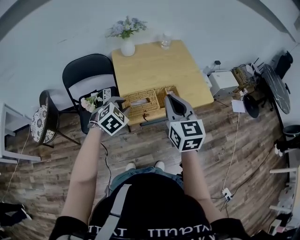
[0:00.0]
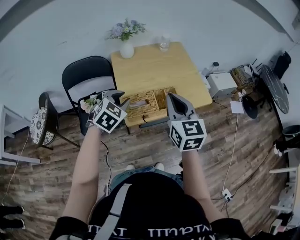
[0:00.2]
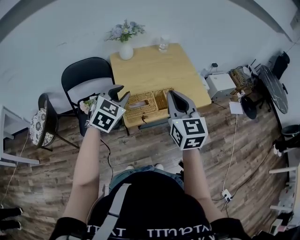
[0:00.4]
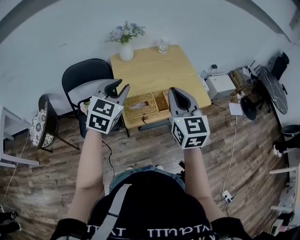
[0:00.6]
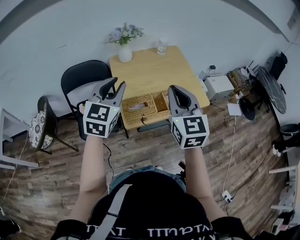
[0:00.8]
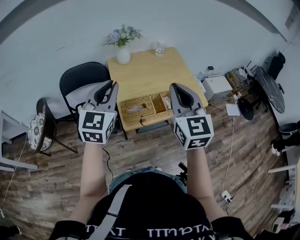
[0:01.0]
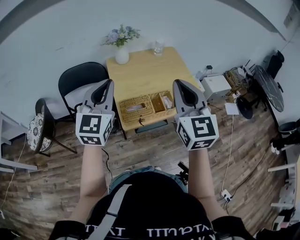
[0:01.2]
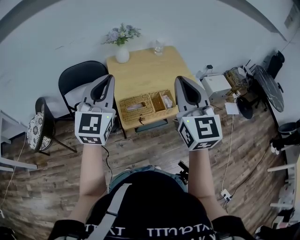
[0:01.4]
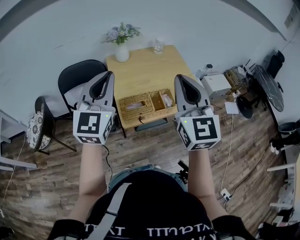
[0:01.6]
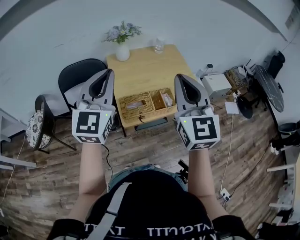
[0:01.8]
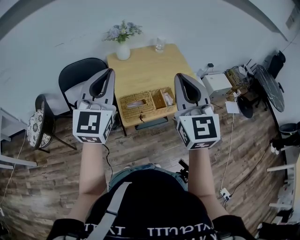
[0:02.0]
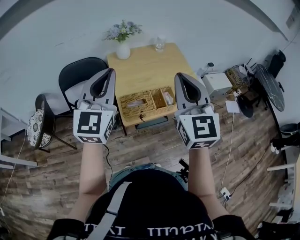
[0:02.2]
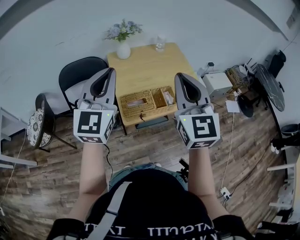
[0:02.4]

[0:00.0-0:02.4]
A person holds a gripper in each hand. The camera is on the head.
0:00.0 to 0:01.2: The right gripper moves upward, roughly 10 cm. Meanwhile the left gripper moves upward, roughly 25 cm, tips its fingers upward by about 50 degrees, and closes up.
0:01.2 to 0:02.4: The grippers move only a little.

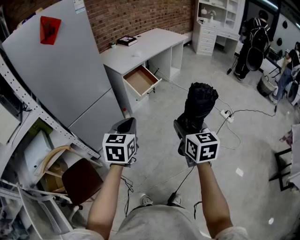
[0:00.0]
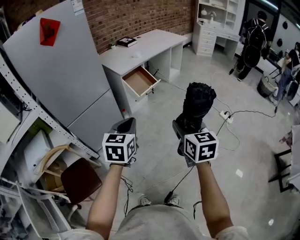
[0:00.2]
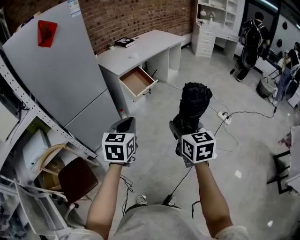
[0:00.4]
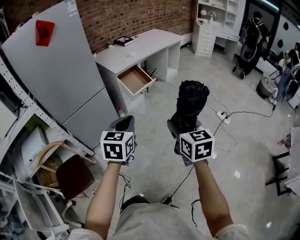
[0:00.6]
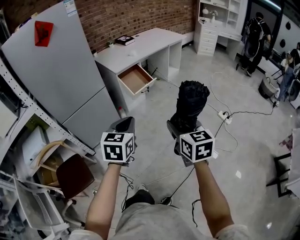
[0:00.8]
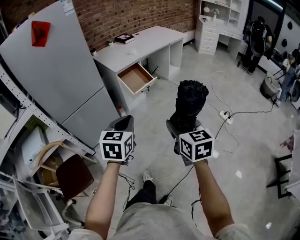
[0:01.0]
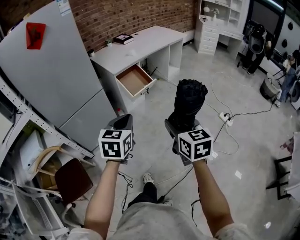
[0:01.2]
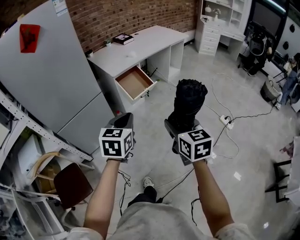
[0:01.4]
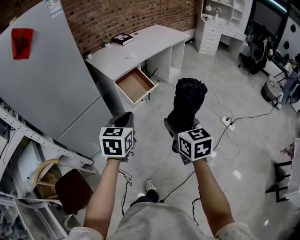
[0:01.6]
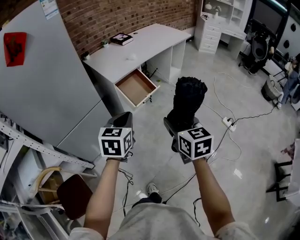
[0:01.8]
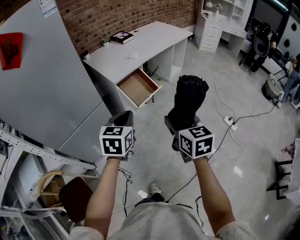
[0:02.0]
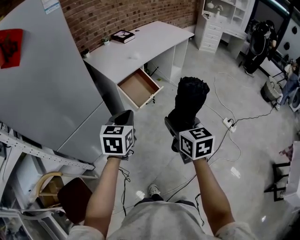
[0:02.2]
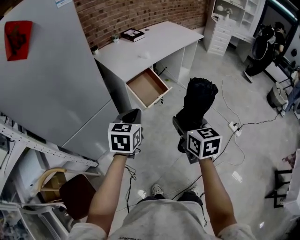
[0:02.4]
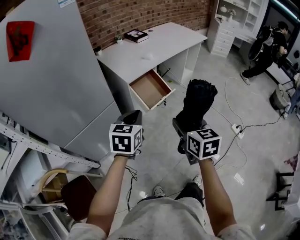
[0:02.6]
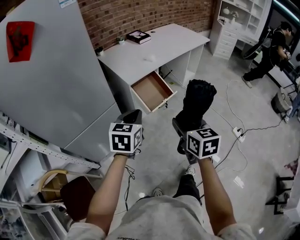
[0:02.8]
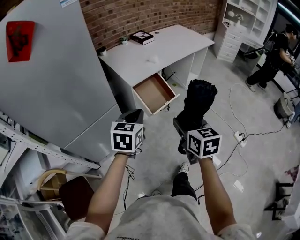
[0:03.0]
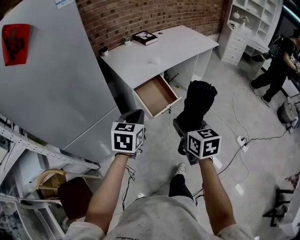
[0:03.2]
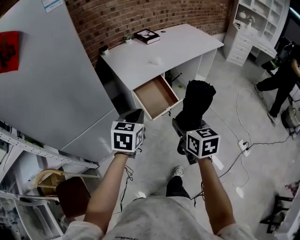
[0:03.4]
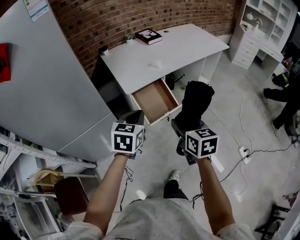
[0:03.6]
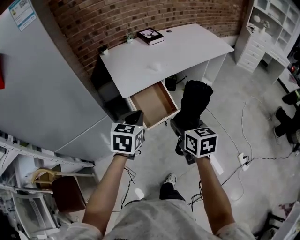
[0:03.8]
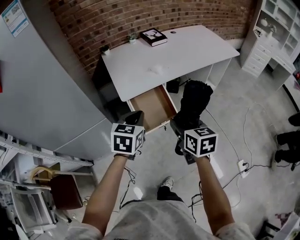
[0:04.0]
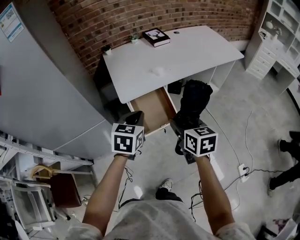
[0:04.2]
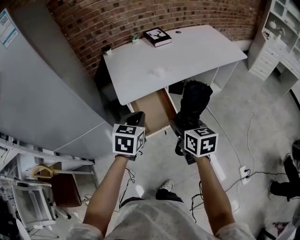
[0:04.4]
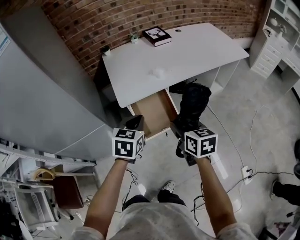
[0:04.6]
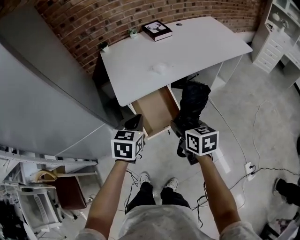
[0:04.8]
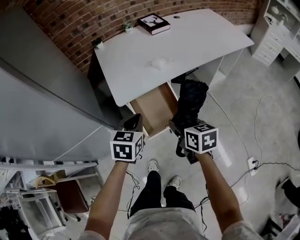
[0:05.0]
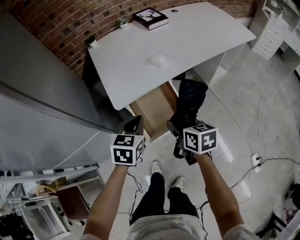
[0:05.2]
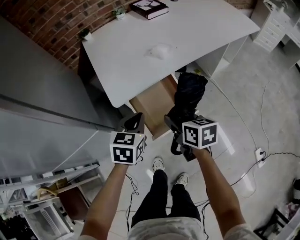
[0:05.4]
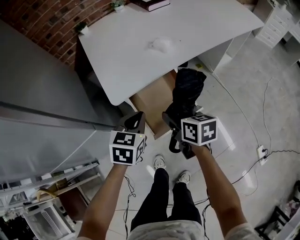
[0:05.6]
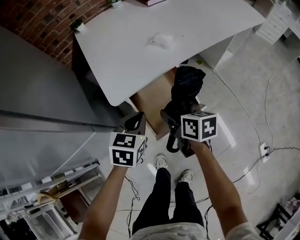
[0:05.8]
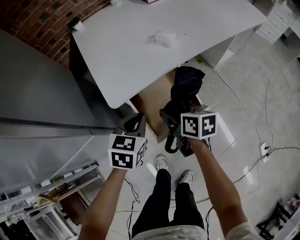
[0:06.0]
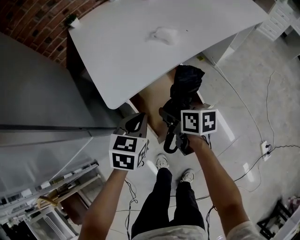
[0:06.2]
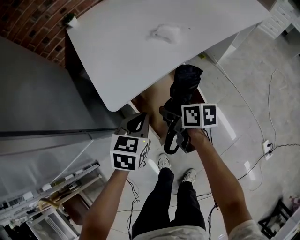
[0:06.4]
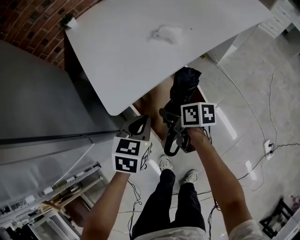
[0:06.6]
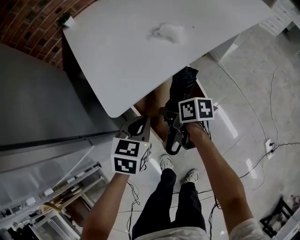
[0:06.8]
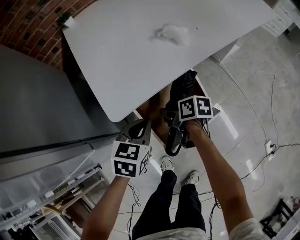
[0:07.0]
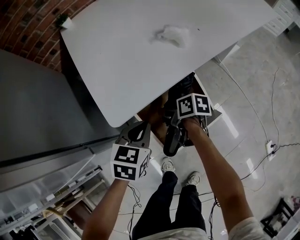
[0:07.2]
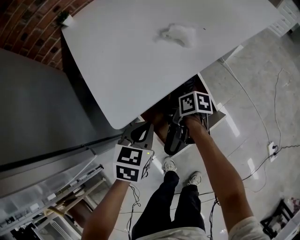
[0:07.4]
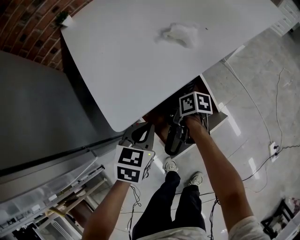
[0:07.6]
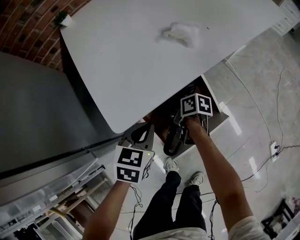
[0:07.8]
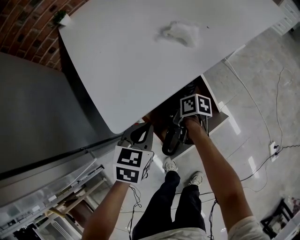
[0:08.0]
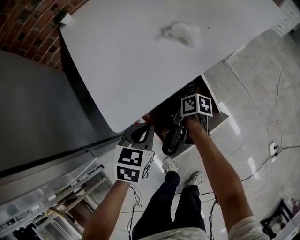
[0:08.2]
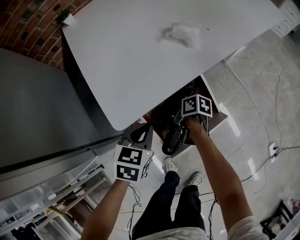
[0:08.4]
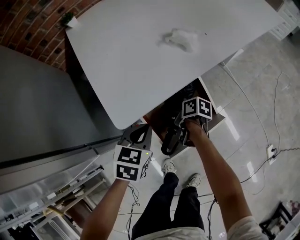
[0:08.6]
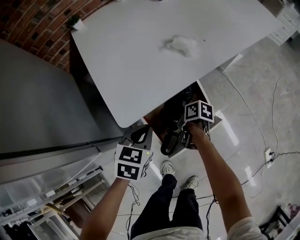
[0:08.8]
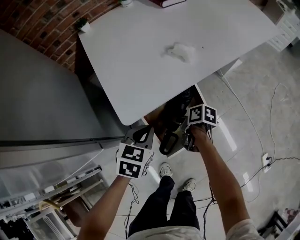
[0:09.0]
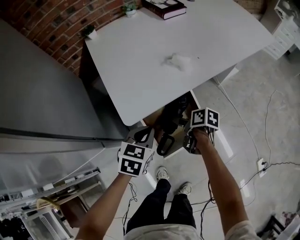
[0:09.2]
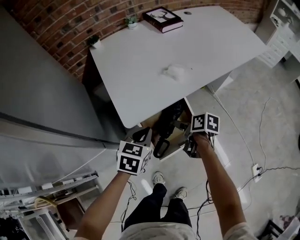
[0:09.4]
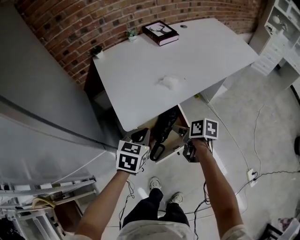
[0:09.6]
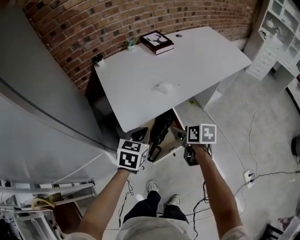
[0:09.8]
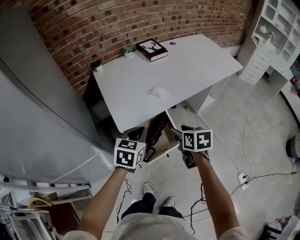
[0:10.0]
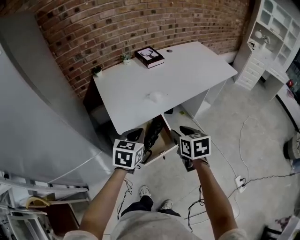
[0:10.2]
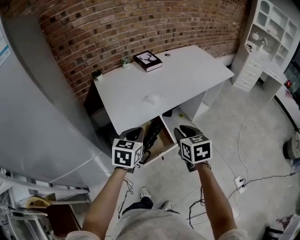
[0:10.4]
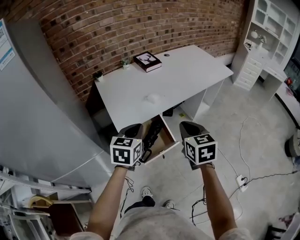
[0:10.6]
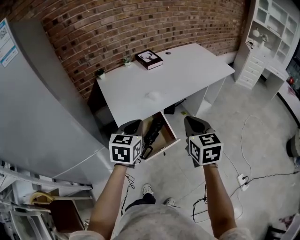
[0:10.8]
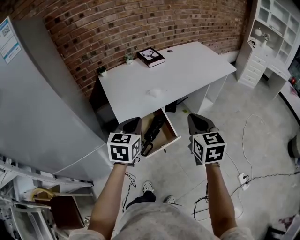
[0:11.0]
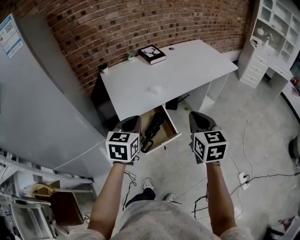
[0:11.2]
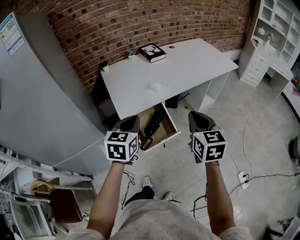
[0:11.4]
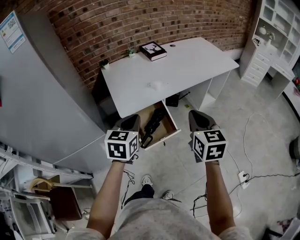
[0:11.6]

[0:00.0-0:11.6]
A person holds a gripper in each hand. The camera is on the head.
0:00.0 to 0:01.4: The left gripper travels forward and to the right by some 15 cm; the right gripper shifts about 10 cm forward.
0:01.4 to 0:02.8: The two grippers go approximately 20 cm forward and to the left.
0:02.8 to 0:04.4: The grippers both shift forward and to the right by some 30 cm. The right gripper rotates roughly 20 degrees.
0:04.4 to 0:05.8: The right gripper travels downward, forward and to the left by roughly 30 cm, and turns by approximately 20 degrees, while the left gripper travels downward and forward by some 25 cm.
0:05.8 to 0:07.2: The right gripper is displaced downward and forward by about 15 cm, and turns by roughly 30 degrees; the left gripper is displaced downward by some 5 cm.
0:07.2 to 0:08.8: The grippers make only small movements.
0:08.8 to 0:10.2: The right gripper is displaced upward by some 40 cm, rolls counterclockwise, seen from behind, by about 50 degrees, and closes. Meanwhile the left gripper travels upward by roughly 25 cm.
0:10.2 to 0:11.6: The right gripper goes roughly 15 cm upward, backward and to the right, swivels some 20 degrees, and closes up. The left gripper goes roughly 10 cm backward and upward.

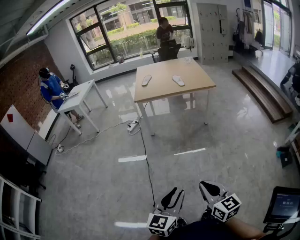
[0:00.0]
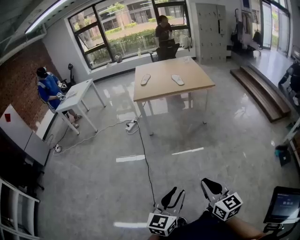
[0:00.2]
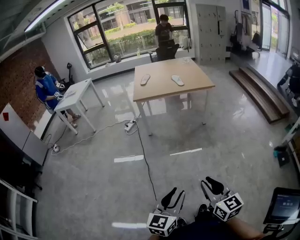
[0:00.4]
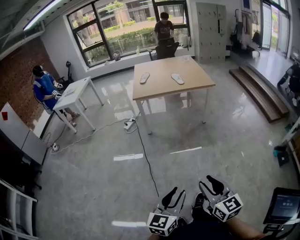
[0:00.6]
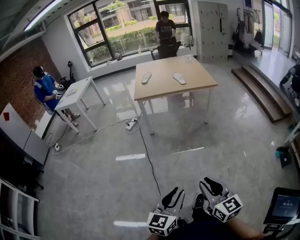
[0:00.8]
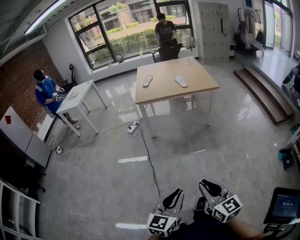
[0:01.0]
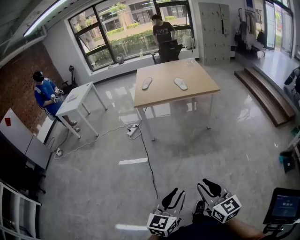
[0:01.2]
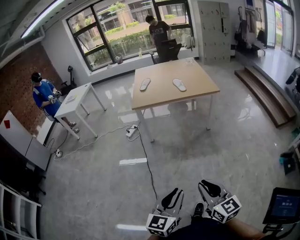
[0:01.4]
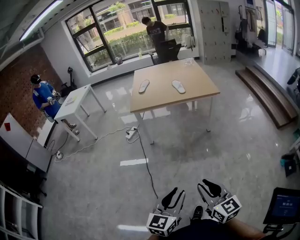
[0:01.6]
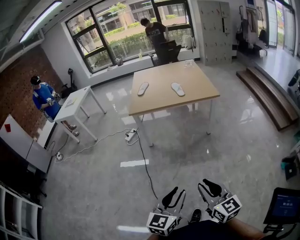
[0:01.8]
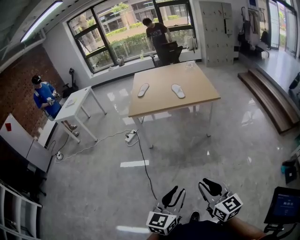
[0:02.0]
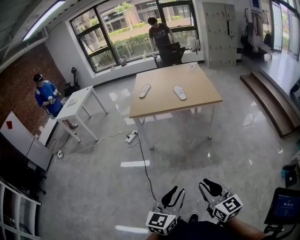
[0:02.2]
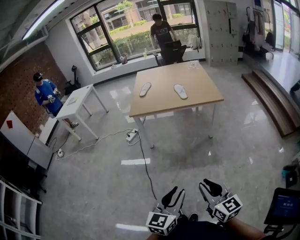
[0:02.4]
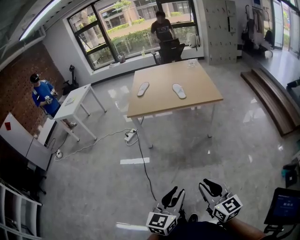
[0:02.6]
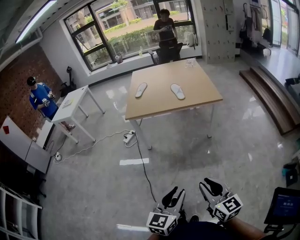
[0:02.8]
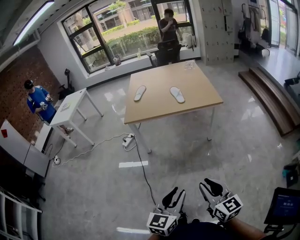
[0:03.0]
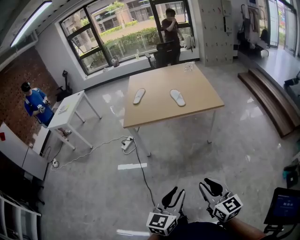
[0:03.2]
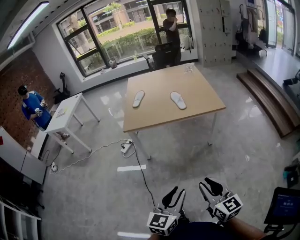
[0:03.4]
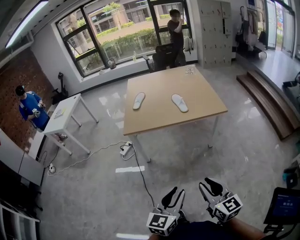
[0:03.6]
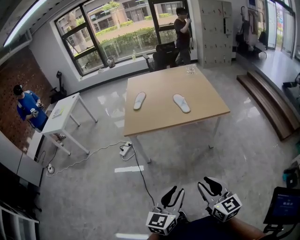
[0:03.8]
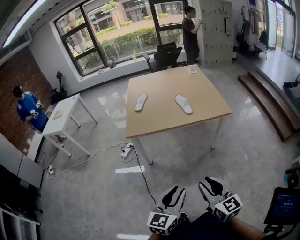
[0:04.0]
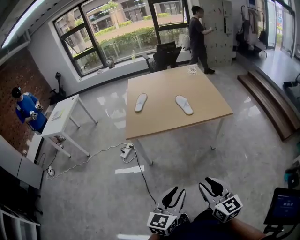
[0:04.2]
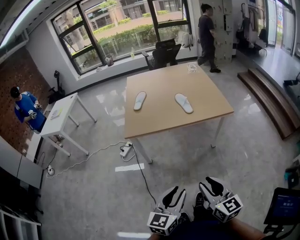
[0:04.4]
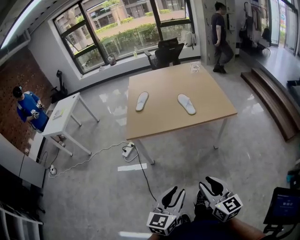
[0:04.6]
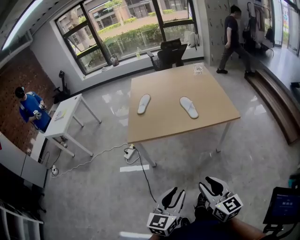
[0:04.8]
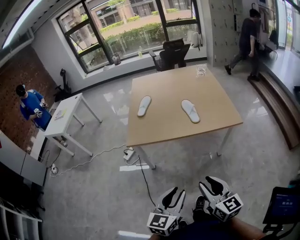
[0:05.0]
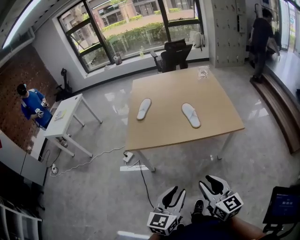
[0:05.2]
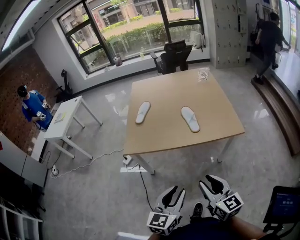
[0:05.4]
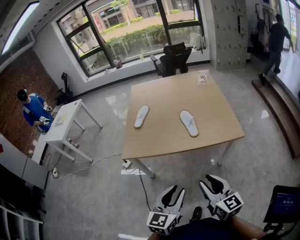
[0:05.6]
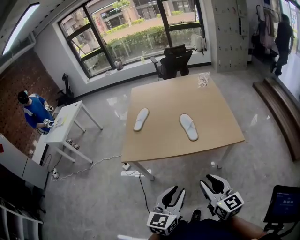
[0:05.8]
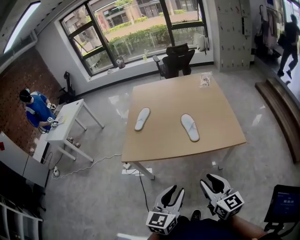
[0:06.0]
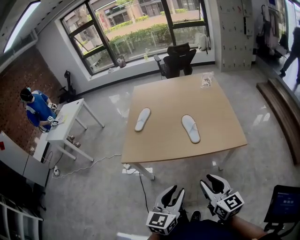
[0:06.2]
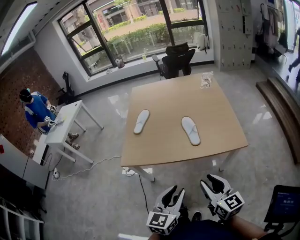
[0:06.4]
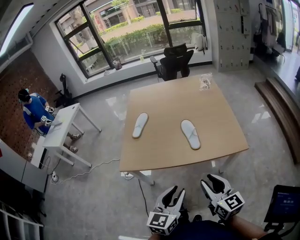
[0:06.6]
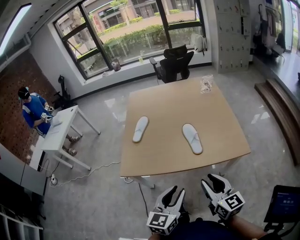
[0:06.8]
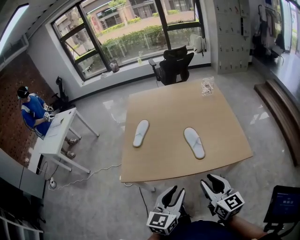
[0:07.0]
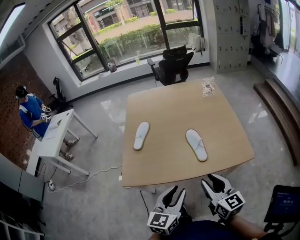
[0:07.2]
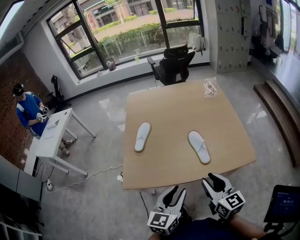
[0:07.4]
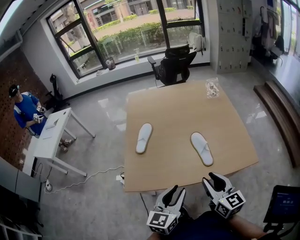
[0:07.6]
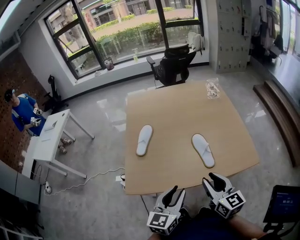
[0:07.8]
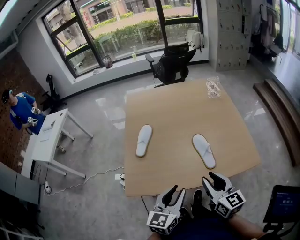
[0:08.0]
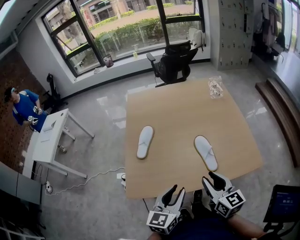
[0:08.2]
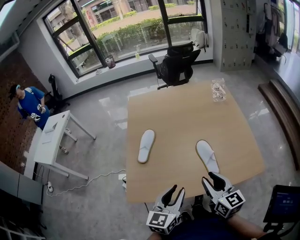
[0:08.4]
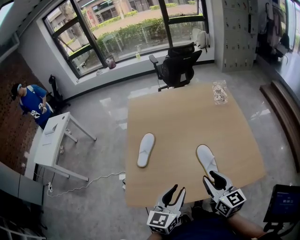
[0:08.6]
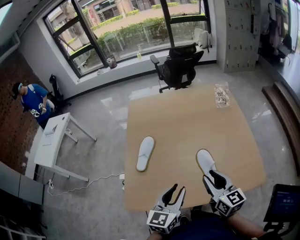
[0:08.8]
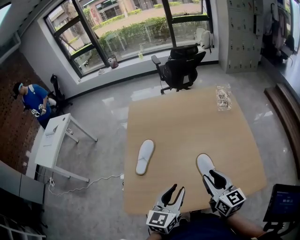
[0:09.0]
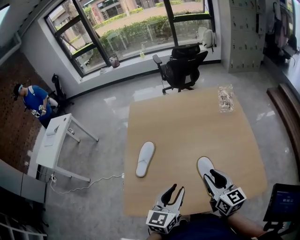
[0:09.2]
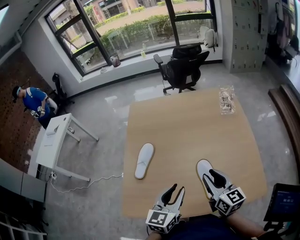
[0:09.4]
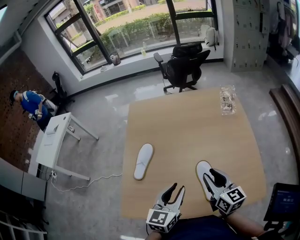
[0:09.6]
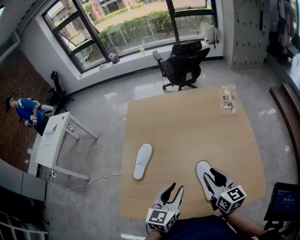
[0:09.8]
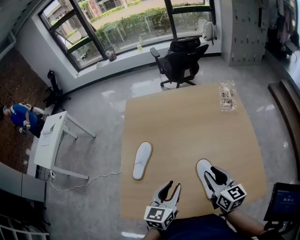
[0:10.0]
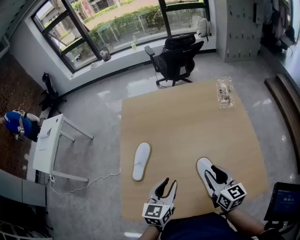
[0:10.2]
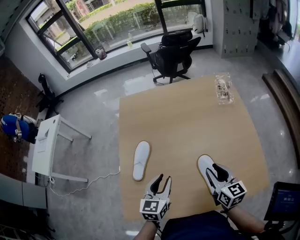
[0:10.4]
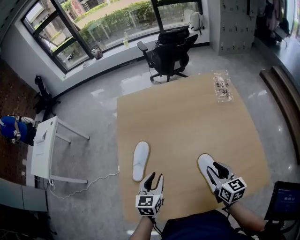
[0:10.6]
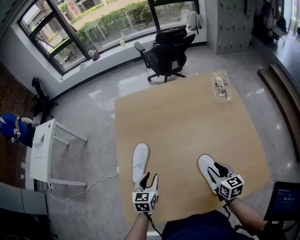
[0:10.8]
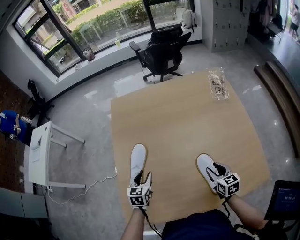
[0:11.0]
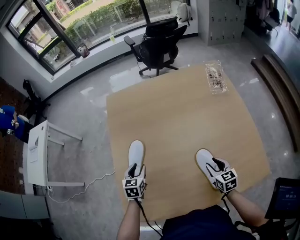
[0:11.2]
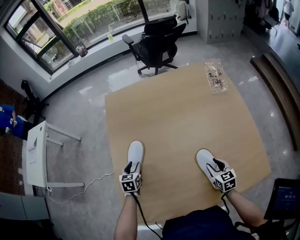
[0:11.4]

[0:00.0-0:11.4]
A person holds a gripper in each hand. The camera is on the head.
0:00.0 to 0:01.4: The two grippers go some 10 cm forward. The right gripper opens, then closes again.
0:01.4 to 0:02.8: Both grippers move forward and to the right, about 20 cm.
0:02.8 to 0:04.2: The two grippers go roughly 20 cm forward and to the left.
0:04.2 to 0:05.6: Both grippers move forward, roughly 20 cm.
0:05.6 to 0:07.2: The two grippers go roughly 20 cm forward.
0:07.2 to 0:08.6: Both grippers travel together forward, roughly 15 cm.
0:08.6 to 0:10.0: Both grippers travel together forward, roughly 15 cm.
0:10.0 to 0:11.4: The left gripper shifts about 35 cm to the left, downward and forward, and turns by some 30 degrees, while the right gripper travels downward by some 20 cm, and rotates some 30 degrees.
